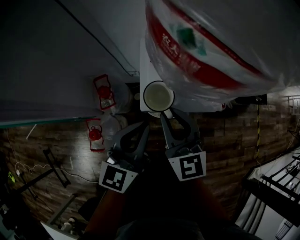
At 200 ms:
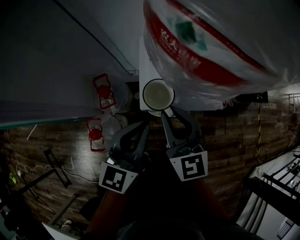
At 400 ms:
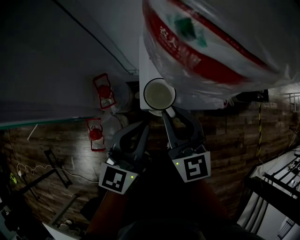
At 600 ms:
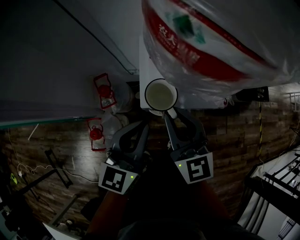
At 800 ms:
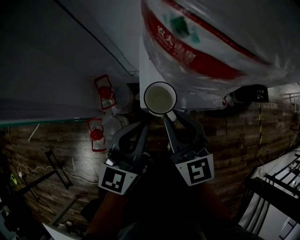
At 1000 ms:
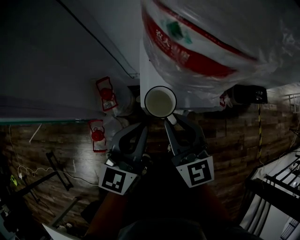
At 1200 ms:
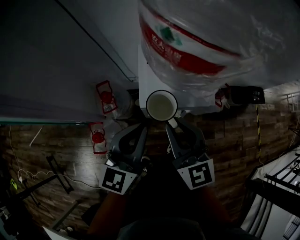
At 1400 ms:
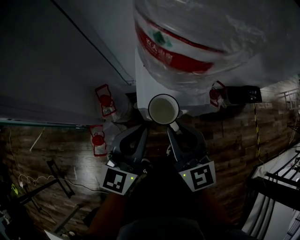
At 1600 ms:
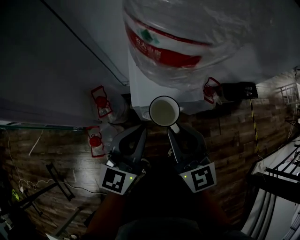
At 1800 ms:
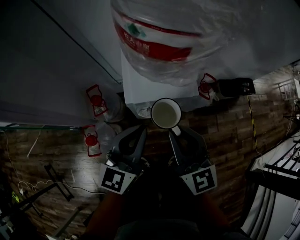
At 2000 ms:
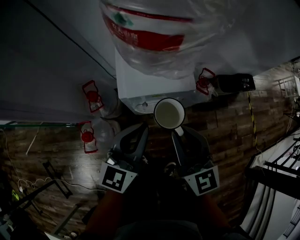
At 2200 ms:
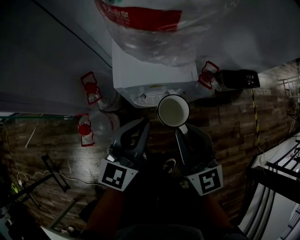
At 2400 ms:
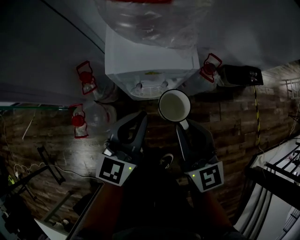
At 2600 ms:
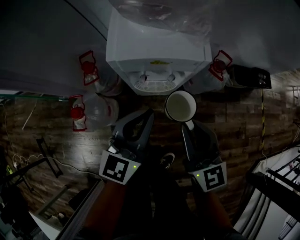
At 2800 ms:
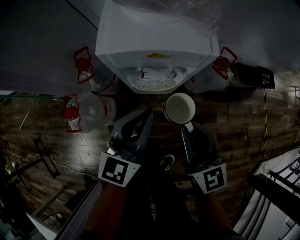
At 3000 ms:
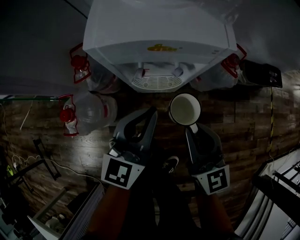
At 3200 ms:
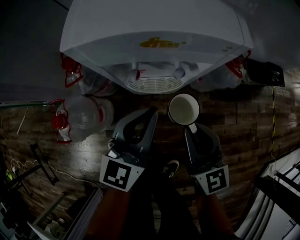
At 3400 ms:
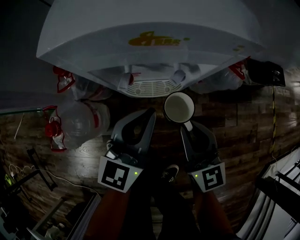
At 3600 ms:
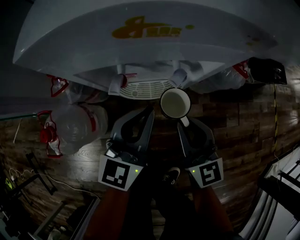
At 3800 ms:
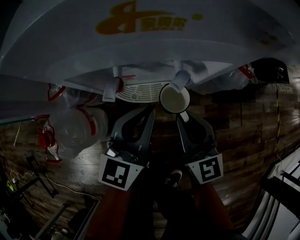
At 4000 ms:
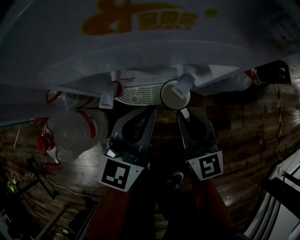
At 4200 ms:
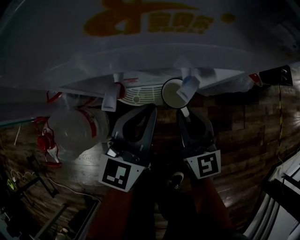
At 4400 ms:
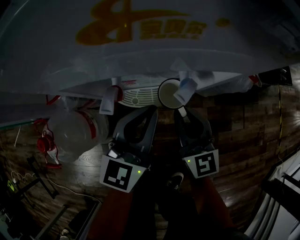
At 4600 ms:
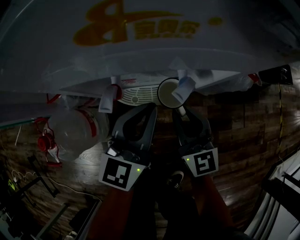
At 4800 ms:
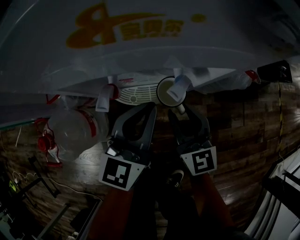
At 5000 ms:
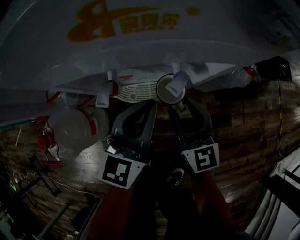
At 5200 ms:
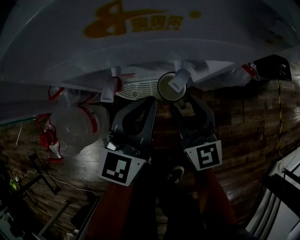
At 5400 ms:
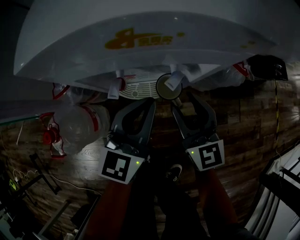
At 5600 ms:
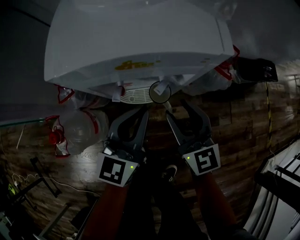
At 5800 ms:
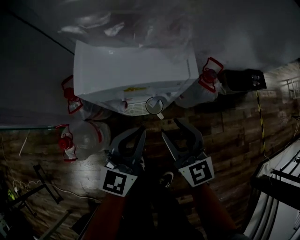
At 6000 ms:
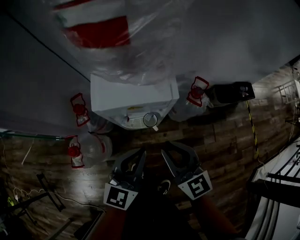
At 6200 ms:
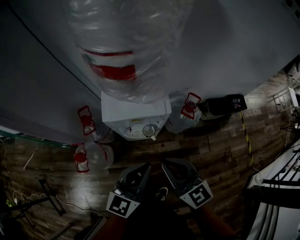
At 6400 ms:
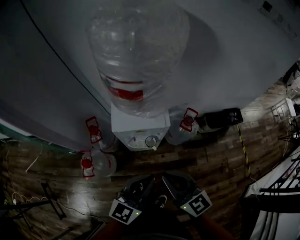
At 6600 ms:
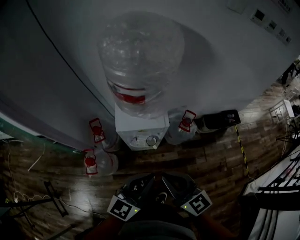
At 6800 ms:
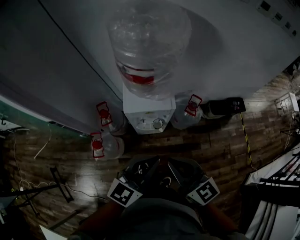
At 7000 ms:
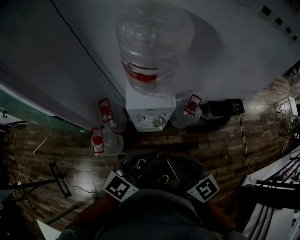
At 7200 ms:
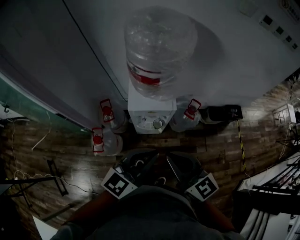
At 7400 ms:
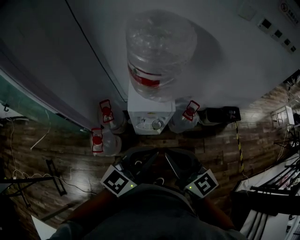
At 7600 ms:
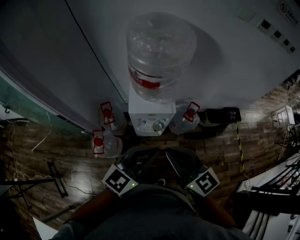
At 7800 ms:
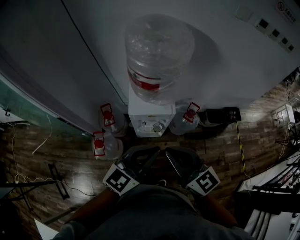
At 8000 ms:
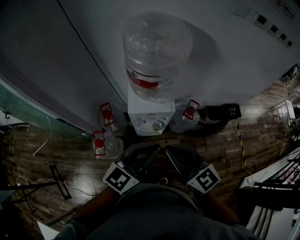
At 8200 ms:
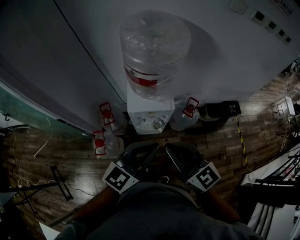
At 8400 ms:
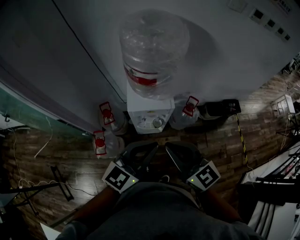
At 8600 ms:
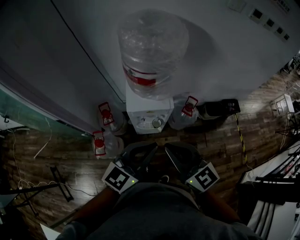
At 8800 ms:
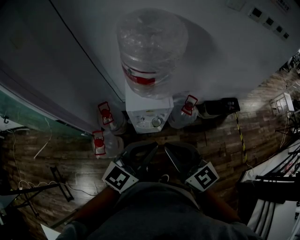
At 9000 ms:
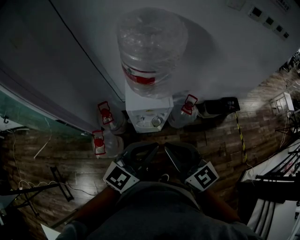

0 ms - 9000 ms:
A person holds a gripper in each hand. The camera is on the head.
0 ms - 1600 ms: The right gripper goes about 10 cm backward and upward. The left gripper goes approximately 5 cm upward and backward.
1600 ms - 3000 ms: The left gripper shifts some 25 cm downward, while the right gripper shifts roughly 30 cm downward and to the right.
3000 ms - 4400 ms: The two grippers go roughly 20 cm downward and forward.
4400 ms - 6000 ms: The two grippers go some 30 cm upward. The right gripper opens, then closes once more.
6000 ms - 7600 ms: The two grippers go about 30 cm upward.
7600 ms - 9000 ms: Both grippers stay about where they are.

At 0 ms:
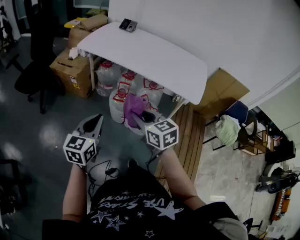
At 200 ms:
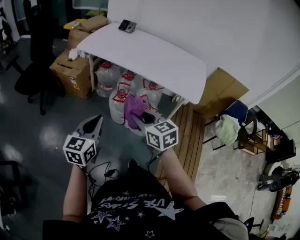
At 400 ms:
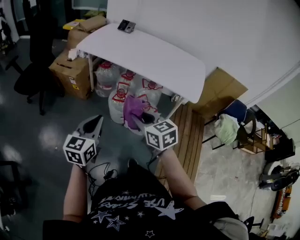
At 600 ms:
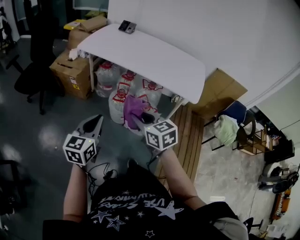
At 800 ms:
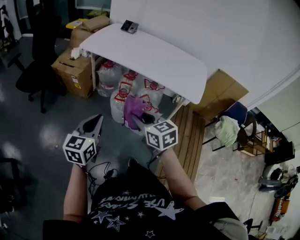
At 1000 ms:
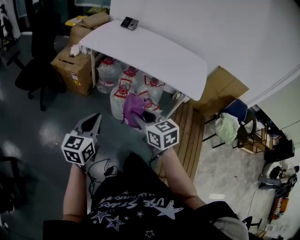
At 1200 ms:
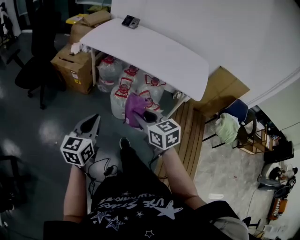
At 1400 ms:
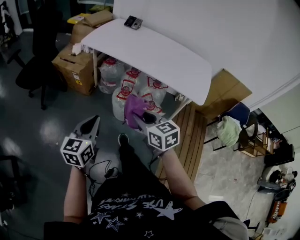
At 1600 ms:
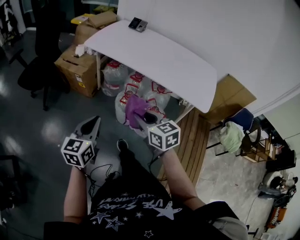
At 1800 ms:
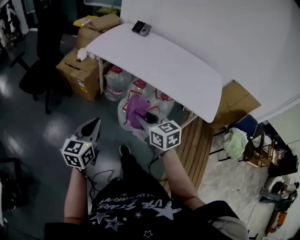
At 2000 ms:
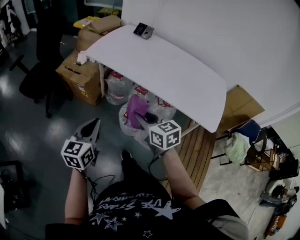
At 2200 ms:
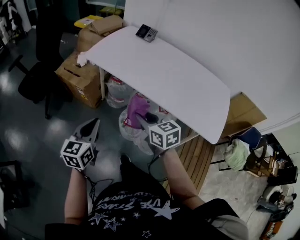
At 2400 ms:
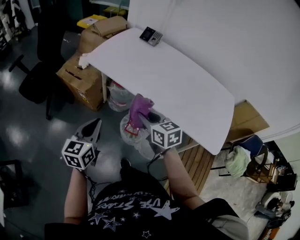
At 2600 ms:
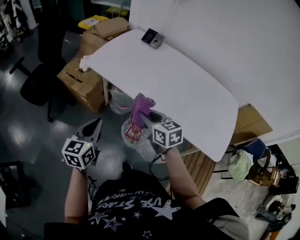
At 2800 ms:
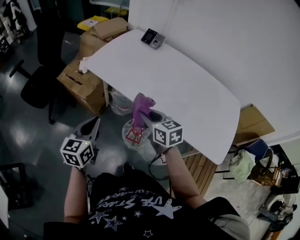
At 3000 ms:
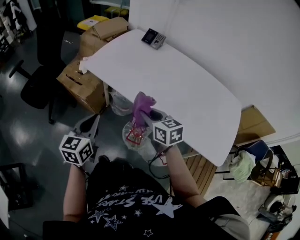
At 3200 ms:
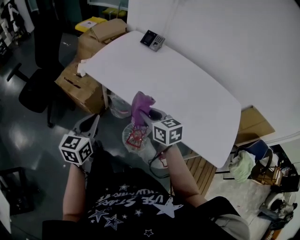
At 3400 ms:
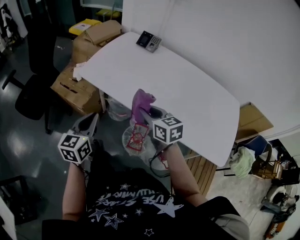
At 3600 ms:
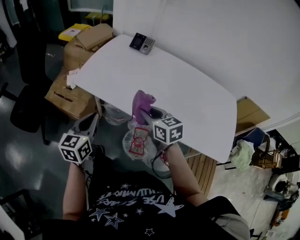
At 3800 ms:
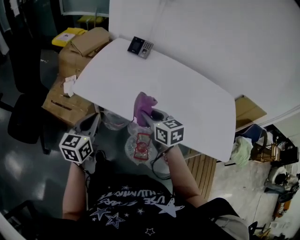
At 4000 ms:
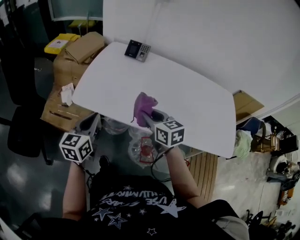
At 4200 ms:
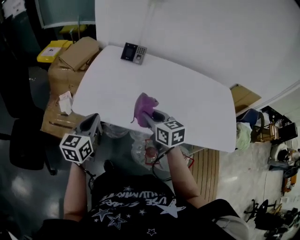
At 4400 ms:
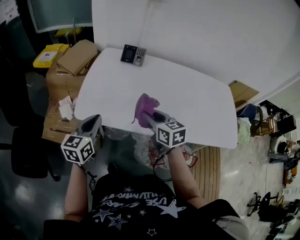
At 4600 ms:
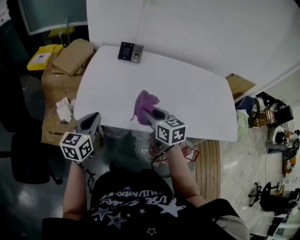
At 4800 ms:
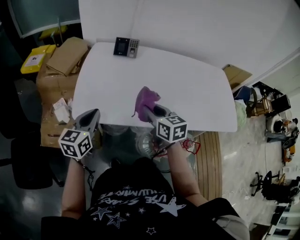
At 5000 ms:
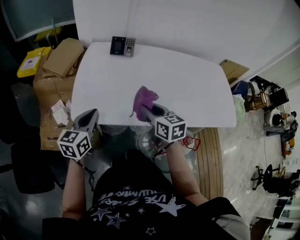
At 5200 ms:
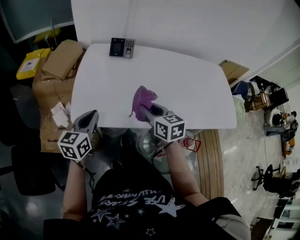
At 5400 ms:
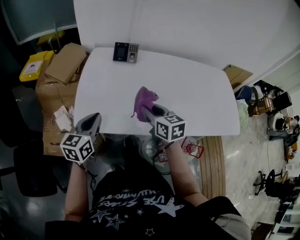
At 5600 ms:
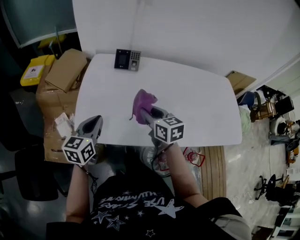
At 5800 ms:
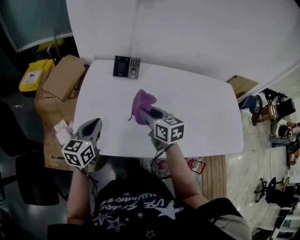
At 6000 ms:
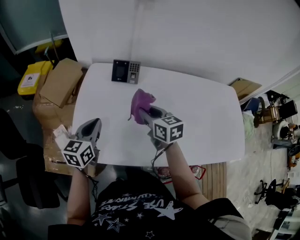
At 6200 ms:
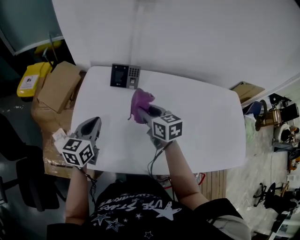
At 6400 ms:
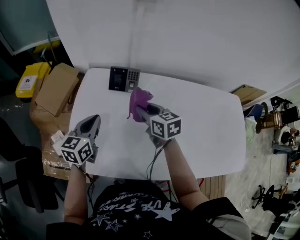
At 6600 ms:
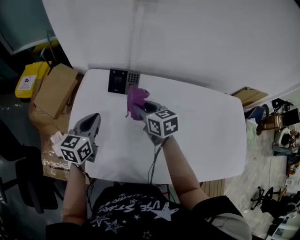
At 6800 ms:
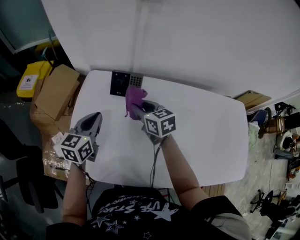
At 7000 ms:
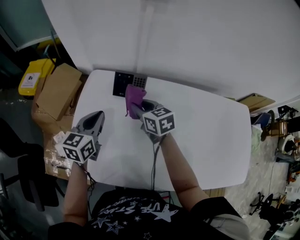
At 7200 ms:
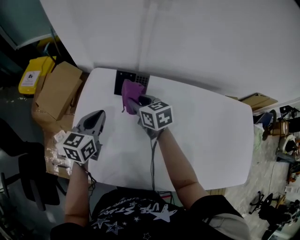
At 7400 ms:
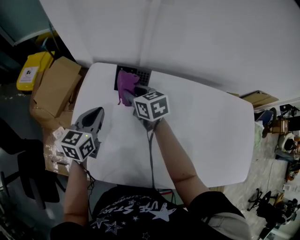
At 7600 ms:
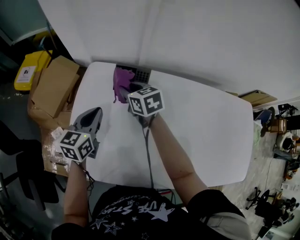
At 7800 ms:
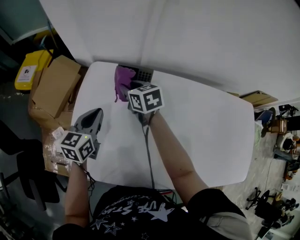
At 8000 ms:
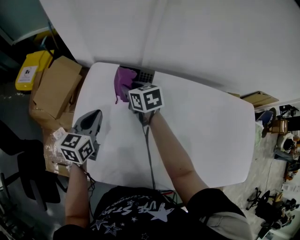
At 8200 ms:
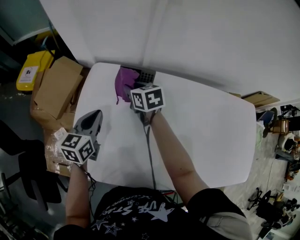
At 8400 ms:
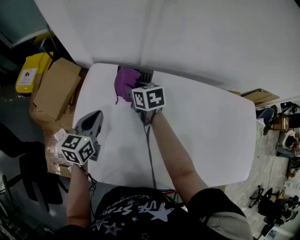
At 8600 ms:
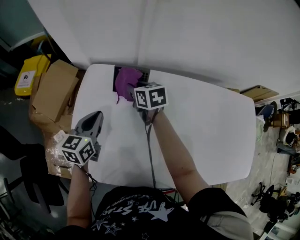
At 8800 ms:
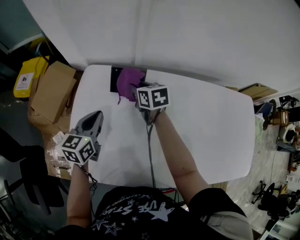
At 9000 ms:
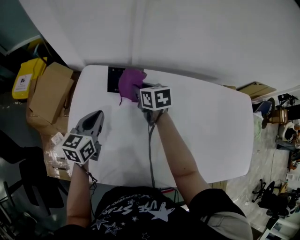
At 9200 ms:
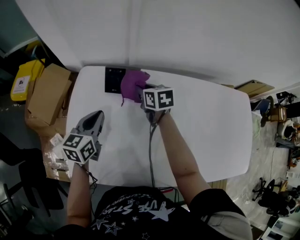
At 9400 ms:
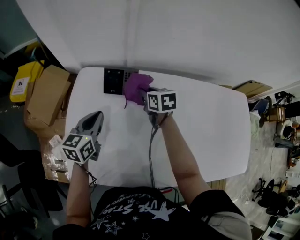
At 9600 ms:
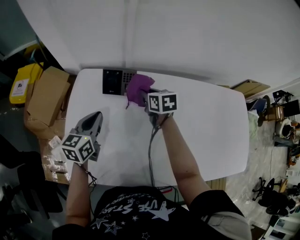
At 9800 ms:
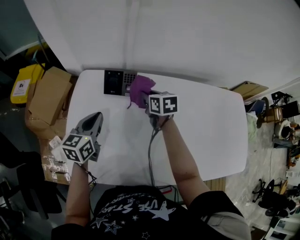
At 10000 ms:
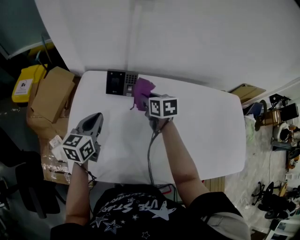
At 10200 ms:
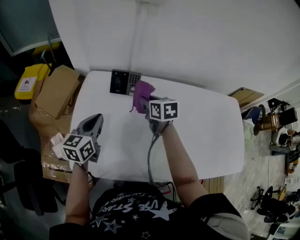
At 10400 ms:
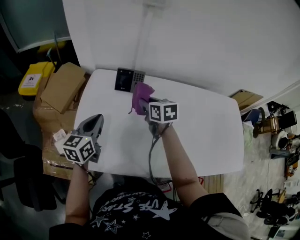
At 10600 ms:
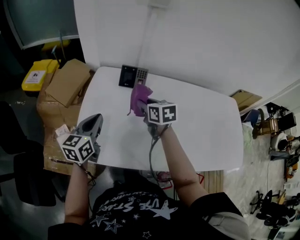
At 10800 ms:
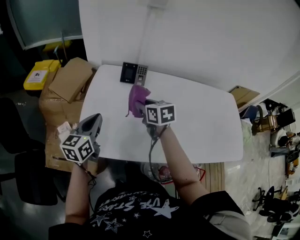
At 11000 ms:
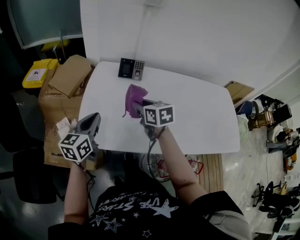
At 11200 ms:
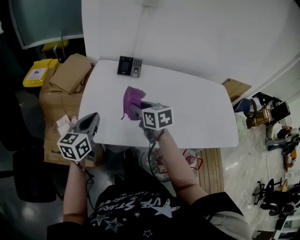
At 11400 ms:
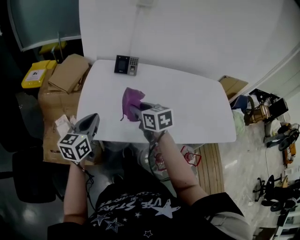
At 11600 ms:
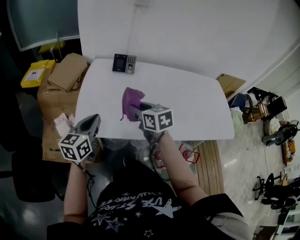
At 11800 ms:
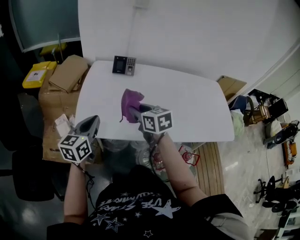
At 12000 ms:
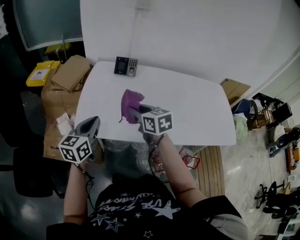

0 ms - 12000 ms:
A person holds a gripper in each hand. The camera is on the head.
0 ms - 1600 ms: The right gripper goes roughly 5 cm forward, while the left gripper moves approximately 5 cm.
1600 ms - 3000 ms: Both grippers travel together forward, some 35 cm.
3000 ms - 4400 ms: The left gripper ends up roughly 30 cm from where it was, and swivels approximately 30 degrees. The right gripper ends up some 25 cm from where it was, and rotates some 30 degrees.
4400 ms - 6000 ms: Both grippers move forward, about 20 cm.
6000 ms - 7600 ms: Both grippers move forward, approximately 20 cm.
7600 ms - 9000 ms: The right gripper shifts roughly 10 cm to the right.
9000 ms - 10400 ms: The grippers both shift backward and upward by some 15 cm.
10400 ms - 12000 ms: The two grippers go roughly 25 cm backward.

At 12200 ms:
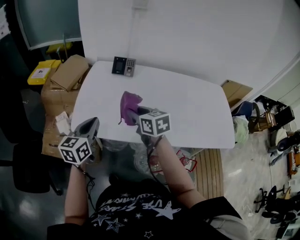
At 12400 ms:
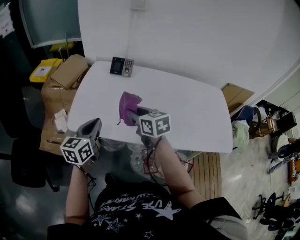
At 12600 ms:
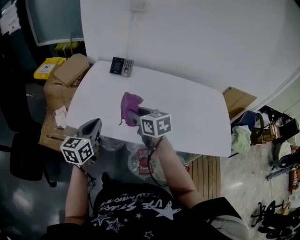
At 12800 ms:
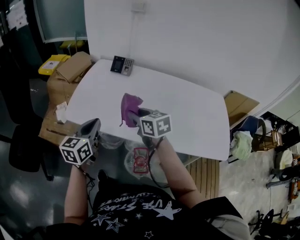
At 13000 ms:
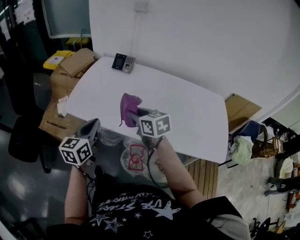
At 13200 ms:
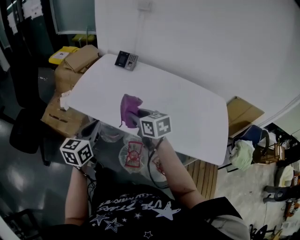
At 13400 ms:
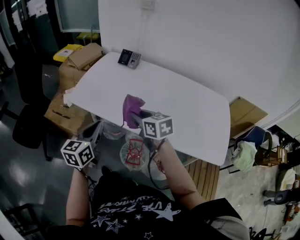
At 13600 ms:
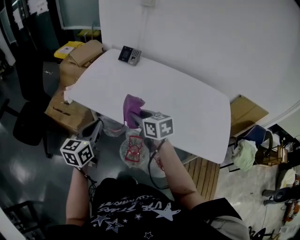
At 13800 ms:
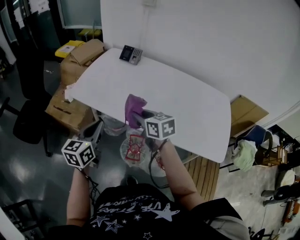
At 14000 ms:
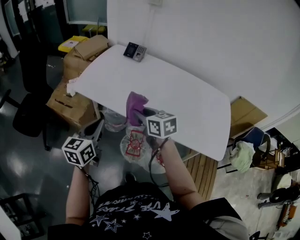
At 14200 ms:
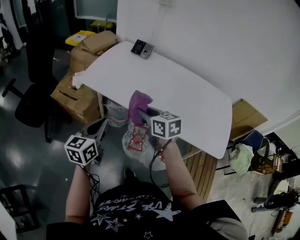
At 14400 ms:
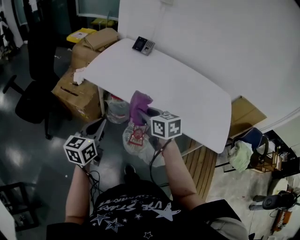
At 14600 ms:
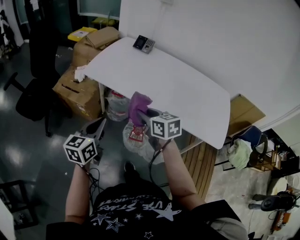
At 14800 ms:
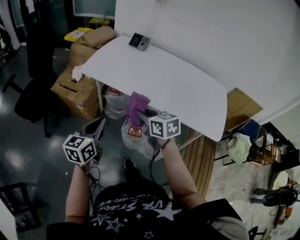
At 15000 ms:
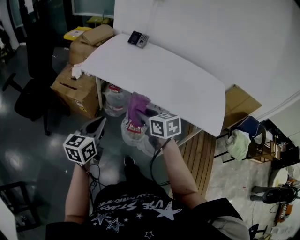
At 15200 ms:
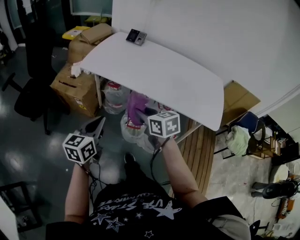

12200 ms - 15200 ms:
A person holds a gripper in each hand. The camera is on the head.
12200 ms - 13800 ms: Both grippers travel together backward and to the right, some 25 cm.
13800 ms - 15200 ms: The grippers both shift backward by about 20 cm.
